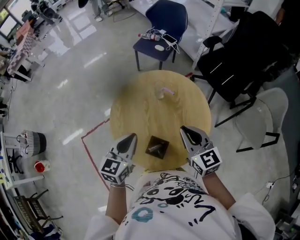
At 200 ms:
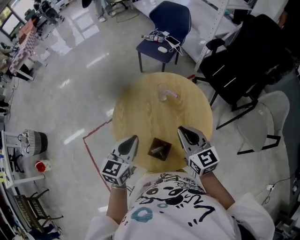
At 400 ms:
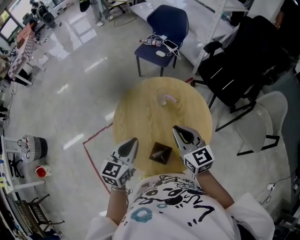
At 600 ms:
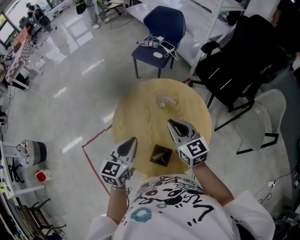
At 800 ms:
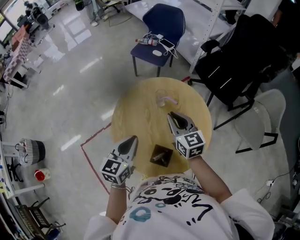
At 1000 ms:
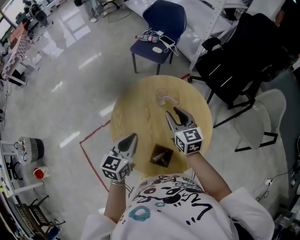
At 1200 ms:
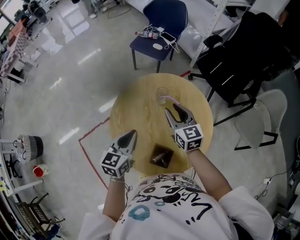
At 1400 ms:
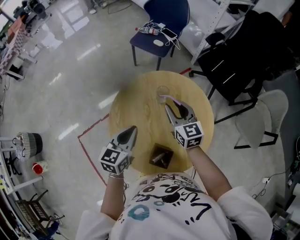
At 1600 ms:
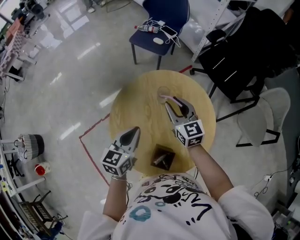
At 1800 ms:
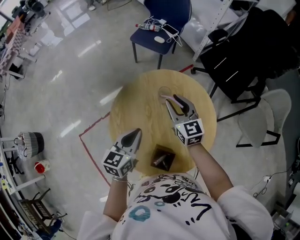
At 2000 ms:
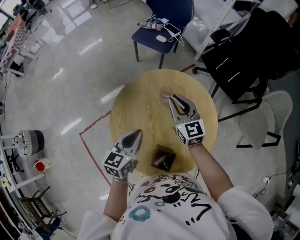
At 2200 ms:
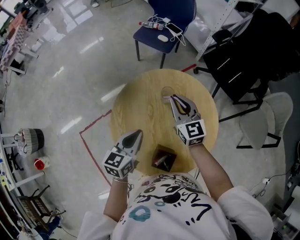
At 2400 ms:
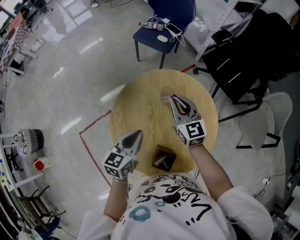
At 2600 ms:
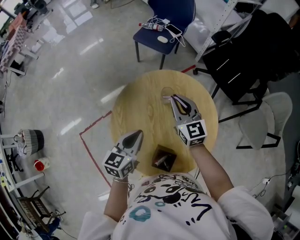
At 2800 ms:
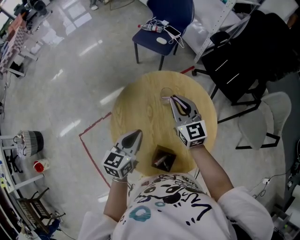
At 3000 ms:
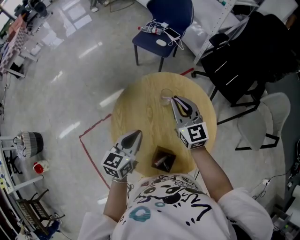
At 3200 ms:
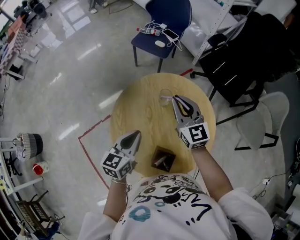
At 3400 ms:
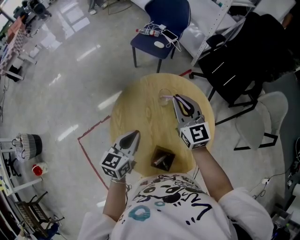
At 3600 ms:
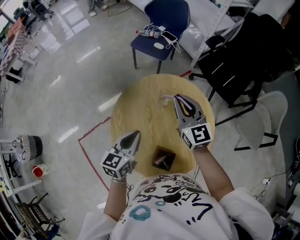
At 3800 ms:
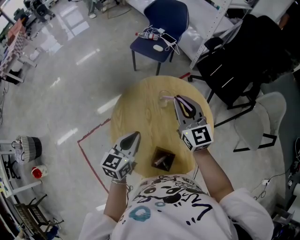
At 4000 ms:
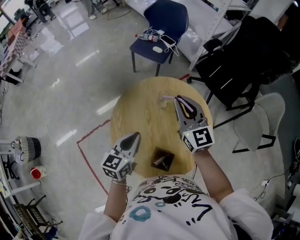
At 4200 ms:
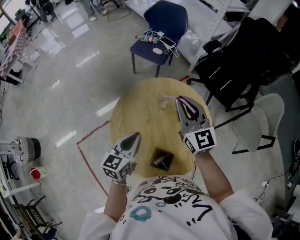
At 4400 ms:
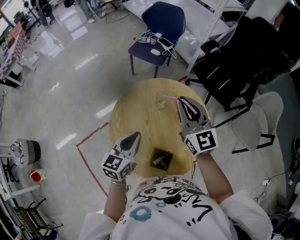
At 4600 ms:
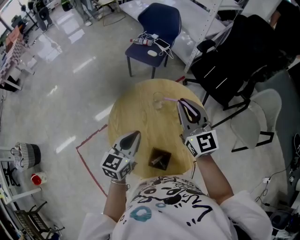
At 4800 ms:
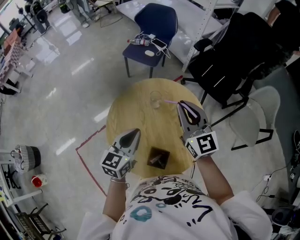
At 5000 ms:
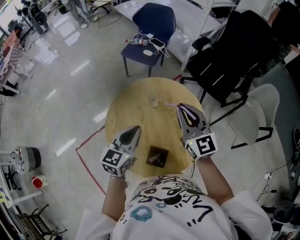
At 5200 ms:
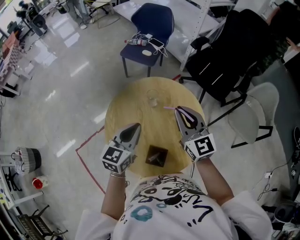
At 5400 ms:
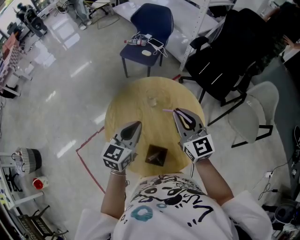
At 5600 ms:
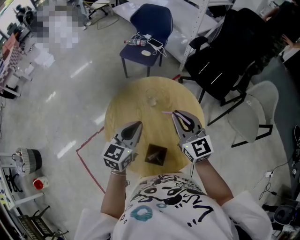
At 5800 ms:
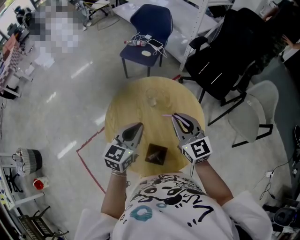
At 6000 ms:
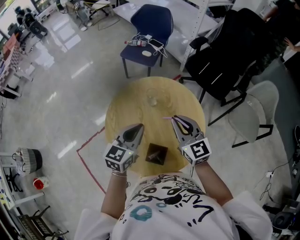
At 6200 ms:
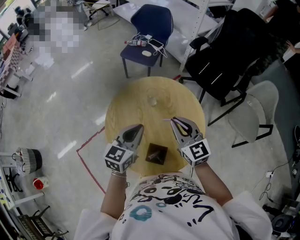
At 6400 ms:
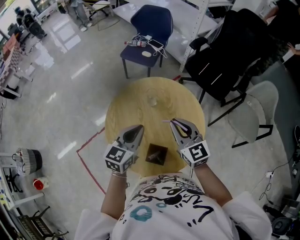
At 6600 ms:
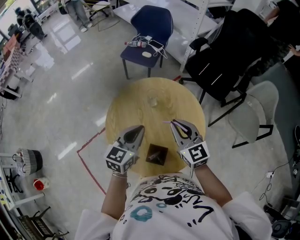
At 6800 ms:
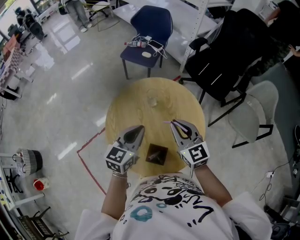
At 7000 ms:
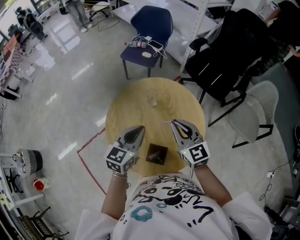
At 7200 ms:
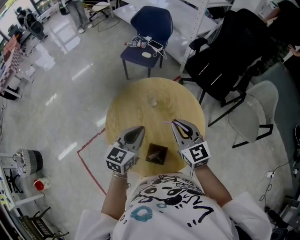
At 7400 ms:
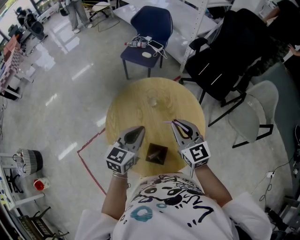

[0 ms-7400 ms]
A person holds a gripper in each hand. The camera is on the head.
0 ms to 1400 ms: The right gripper travels forward and downward by approximately 15 cm, and opens its fingers. The left gripper travels forward by about 10 cm.
1400 ms to 3000 ms: The right gripper closes up.
3000 ms to 4400 ms: The right gripper travels upward by approximately 10 cm.
4400 ms to 6000 ms: The left gripper shifts by roughly 5 cm, while the right gripper travels backward and downward by approximately 10 cm.
6000 ms to 7400 ms: There are only small adjustments of the grippers.

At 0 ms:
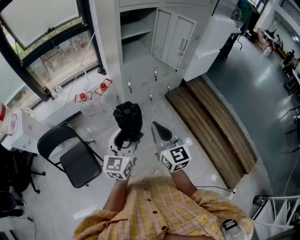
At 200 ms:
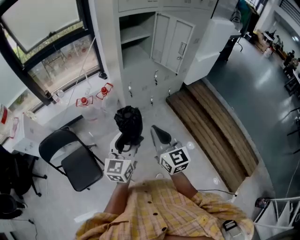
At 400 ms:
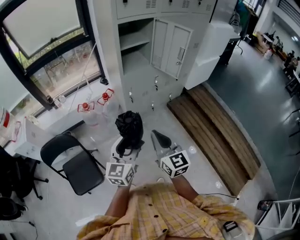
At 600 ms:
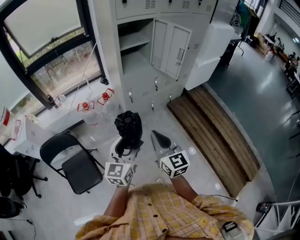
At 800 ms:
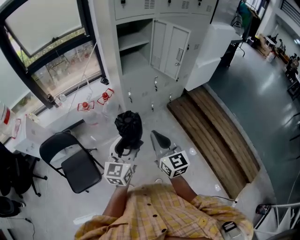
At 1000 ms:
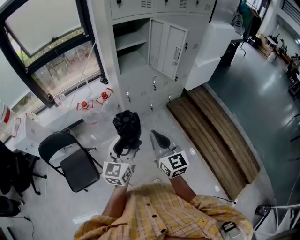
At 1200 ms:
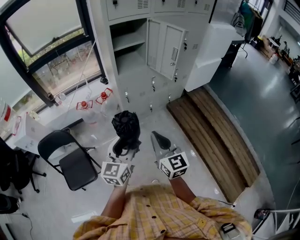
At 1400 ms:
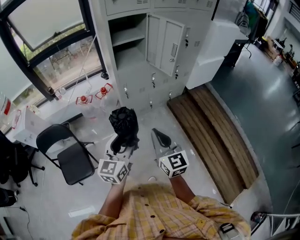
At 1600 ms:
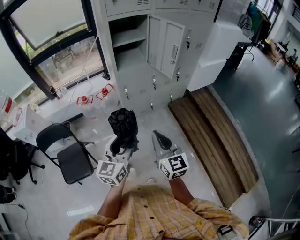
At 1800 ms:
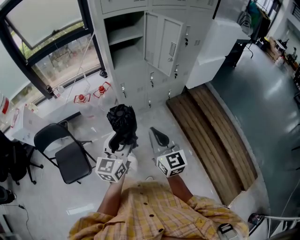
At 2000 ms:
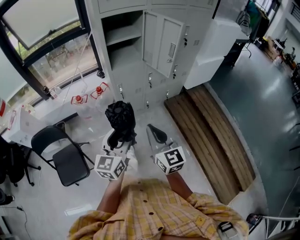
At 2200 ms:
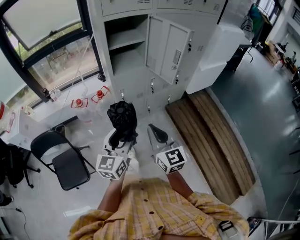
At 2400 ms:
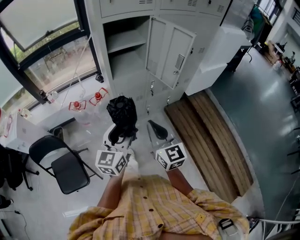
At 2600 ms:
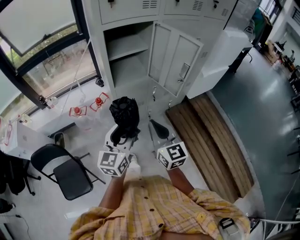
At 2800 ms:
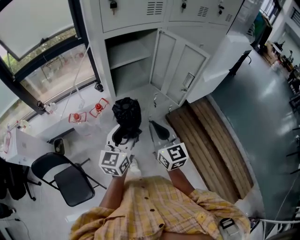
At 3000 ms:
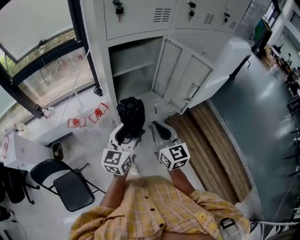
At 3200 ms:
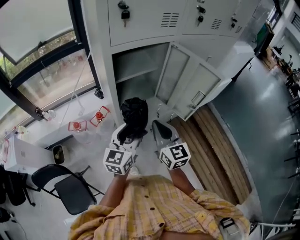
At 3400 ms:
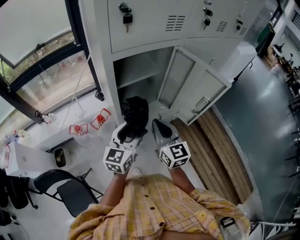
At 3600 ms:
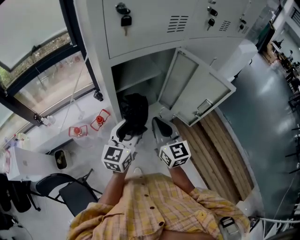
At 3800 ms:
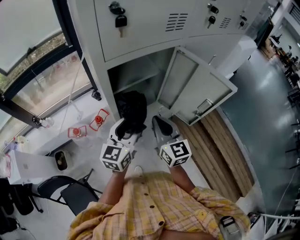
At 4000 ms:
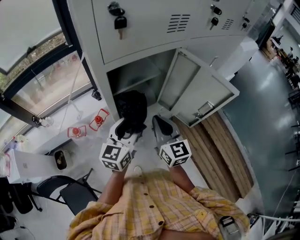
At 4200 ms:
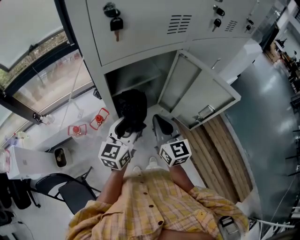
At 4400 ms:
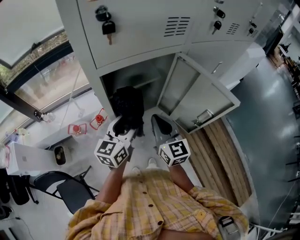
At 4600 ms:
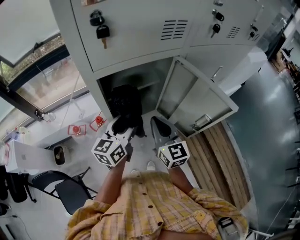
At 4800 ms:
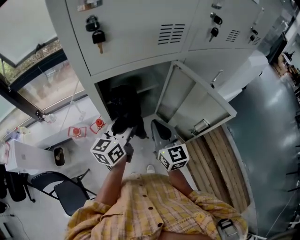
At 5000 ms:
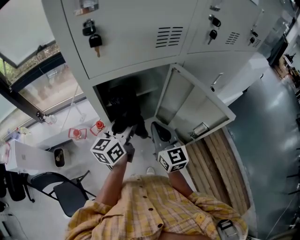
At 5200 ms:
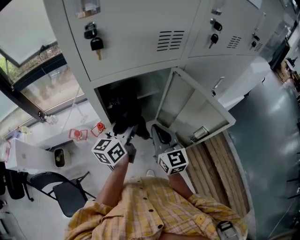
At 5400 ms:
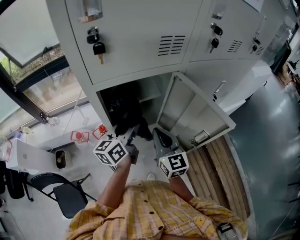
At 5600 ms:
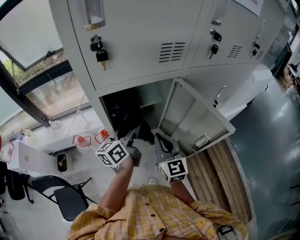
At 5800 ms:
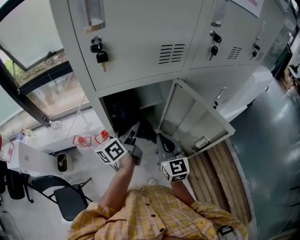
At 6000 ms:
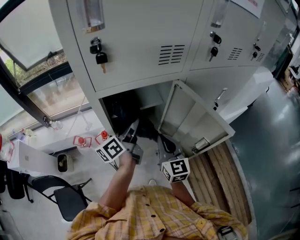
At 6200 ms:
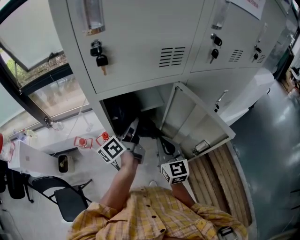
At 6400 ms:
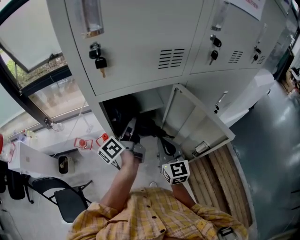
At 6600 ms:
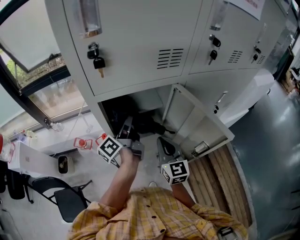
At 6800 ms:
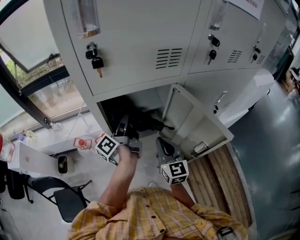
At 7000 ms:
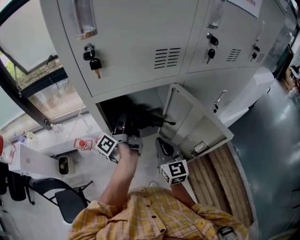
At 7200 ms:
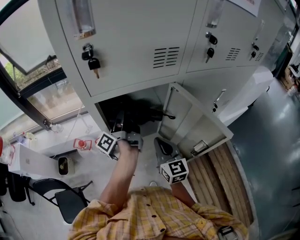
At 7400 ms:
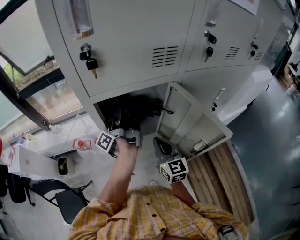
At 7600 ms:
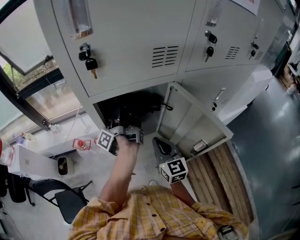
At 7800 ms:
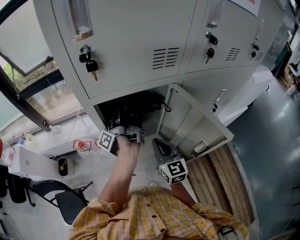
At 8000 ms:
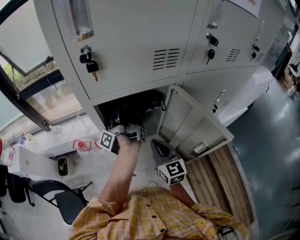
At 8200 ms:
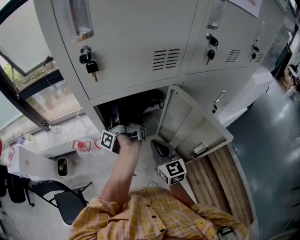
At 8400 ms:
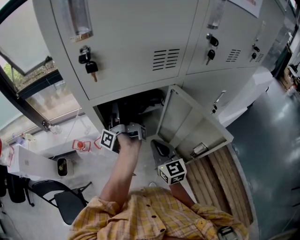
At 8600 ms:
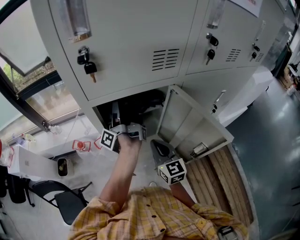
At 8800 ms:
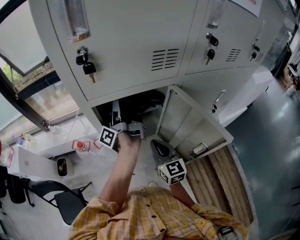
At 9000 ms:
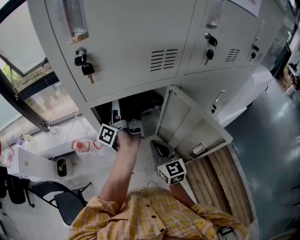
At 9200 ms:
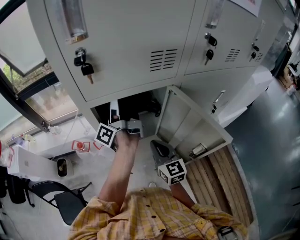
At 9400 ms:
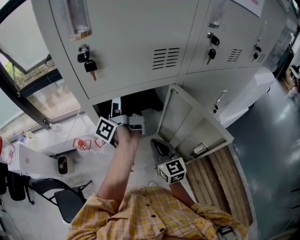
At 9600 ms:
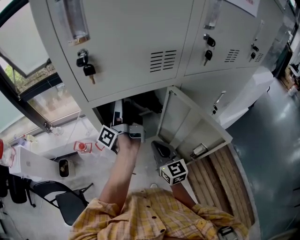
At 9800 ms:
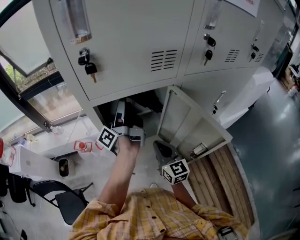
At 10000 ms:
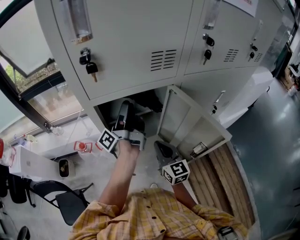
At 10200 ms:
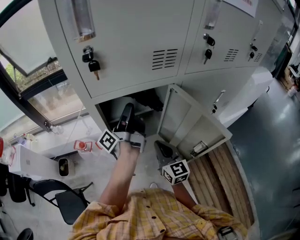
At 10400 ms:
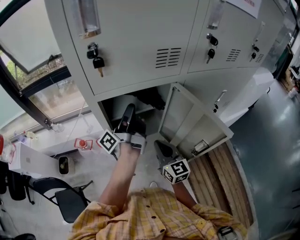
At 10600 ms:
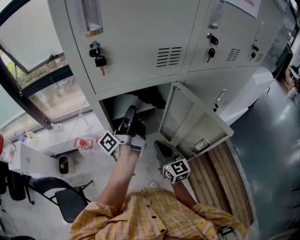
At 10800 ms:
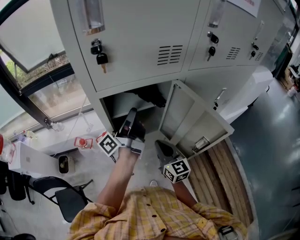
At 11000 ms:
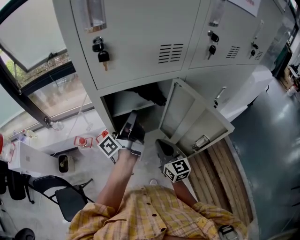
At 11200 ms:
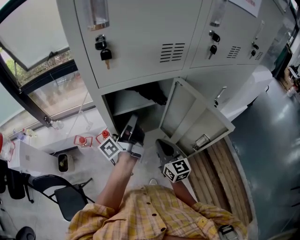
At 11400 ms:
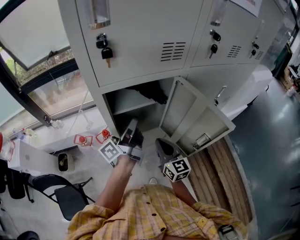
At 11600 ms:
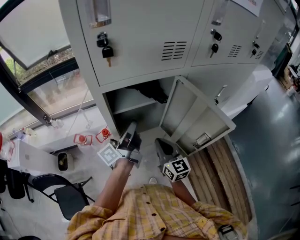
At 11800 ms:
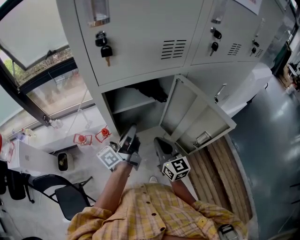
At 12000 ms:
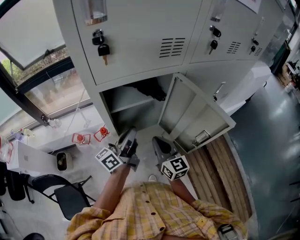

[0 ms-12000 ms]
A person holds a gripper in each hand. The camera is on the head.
0 ms to 1600 ms: Both grippers travel together to the right, some 10 cm.
1600 ms to 3000 ms: The grippers both shift forward by some 35 cm.
3000 ms to 4400 ms: The grippers both shift forward by approximately 20 cm.
4400 ms to 6000 ms: The left gripper heads forward, covering some 10 cm, and swivels approximately 40 degrees.
6000 ms to 7600 ms: The left gripper goes some 5 cm forward, and changes its angle by about 50 degrees.
7600 ms to 9000 ms: The left gripper opens its fingers.
9000 ms to 10400 ms: The left gripper is displaced backward by approximately 5 cm, and closes.
10400 ms to 12000 ms: The left gripper heads backward and downward, covering roughly 10 cm, and swivels roughly 40 degrees.

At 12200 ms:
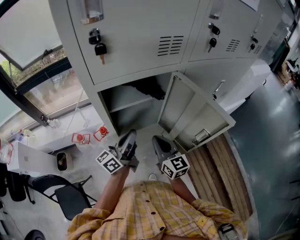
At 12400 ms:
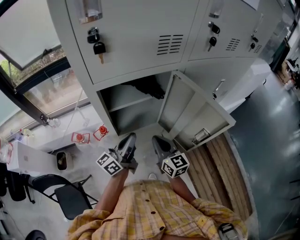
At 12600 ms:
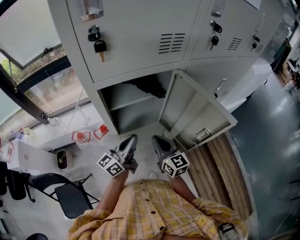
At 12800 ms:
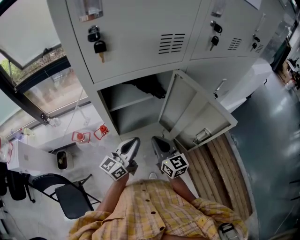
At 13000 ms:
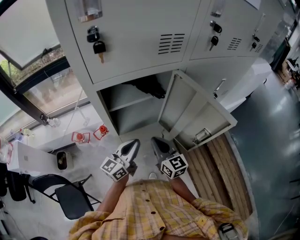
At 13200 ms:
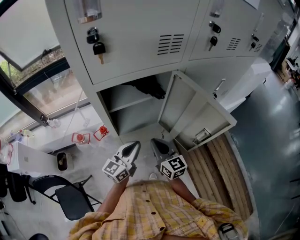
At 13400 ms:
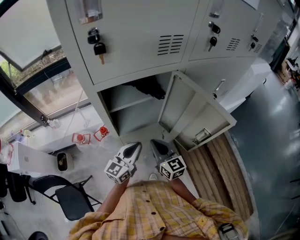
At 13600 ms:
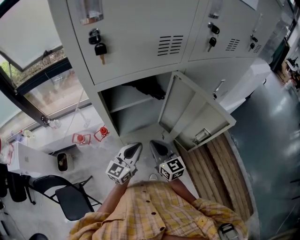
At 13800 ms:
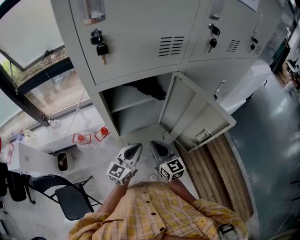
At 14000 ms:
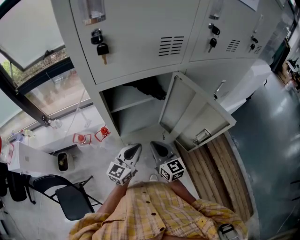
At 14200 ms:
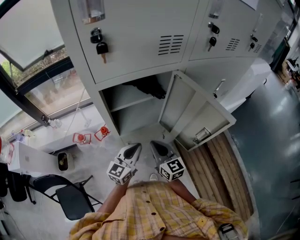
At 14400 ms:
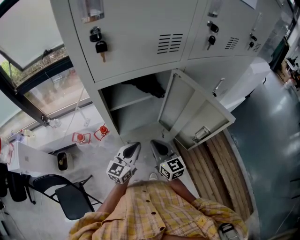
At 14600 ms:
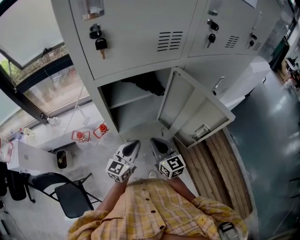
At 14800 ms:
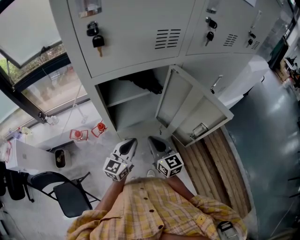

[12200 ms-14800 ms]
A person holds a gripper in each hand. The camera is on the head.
12200 ms to 13400 ms: The left gripper is displaced downward by approximately 5 cm, and rotates about 30 degrees.
13400 ms to 14800 ms: The grippers move only a little.

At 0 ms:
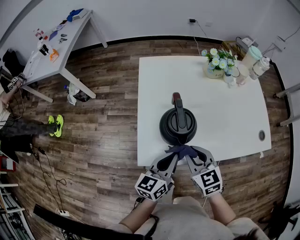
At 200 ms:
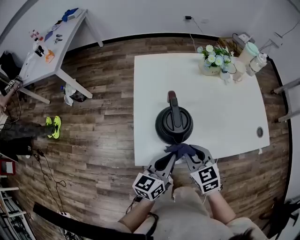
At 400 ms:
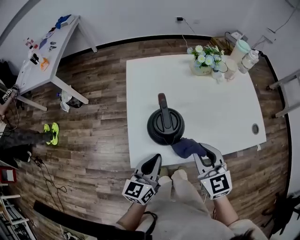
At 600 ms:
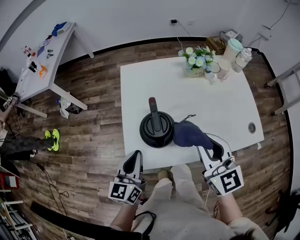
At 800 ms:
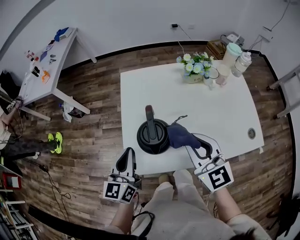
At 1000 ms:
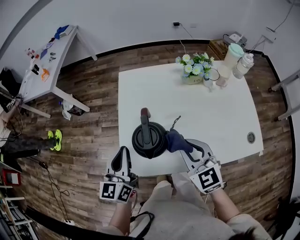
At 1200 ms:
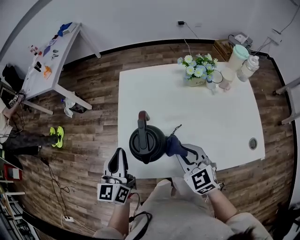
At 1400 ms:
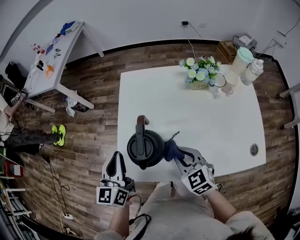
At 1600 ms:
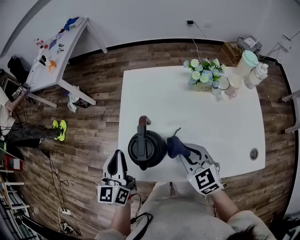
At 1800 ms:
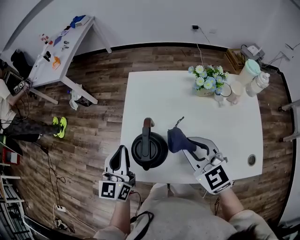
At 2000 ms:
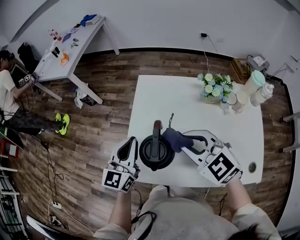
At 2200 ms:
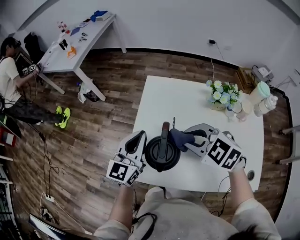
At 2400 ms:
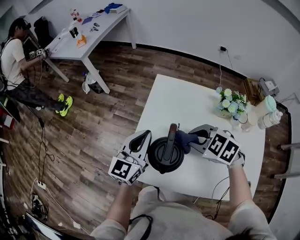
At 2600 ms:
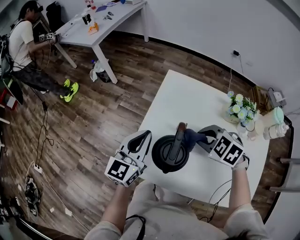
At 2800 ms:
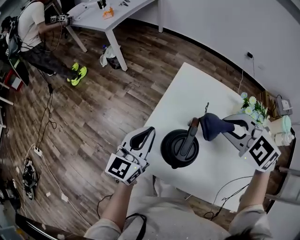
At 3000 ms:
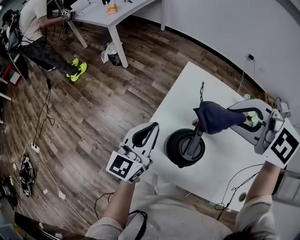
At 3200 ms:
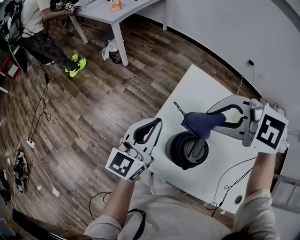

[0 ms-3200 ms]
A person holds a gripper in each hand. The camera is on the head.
0 ms to 1600 ms: The left gripper moves forward, upward and to the left, approximately 15 cm, and turns by approximately 40 degrees, while the right gripper goes approximately 15 cm to the right and forward, and goes upward and returns, roughly 15 cm each way.
1600 ms to 3200 ms: The left gripper moves approximately 10 cm; the right gripper moves up and down over some 20 cm, changing direction 2 times, and turns by some 80 degrees.
